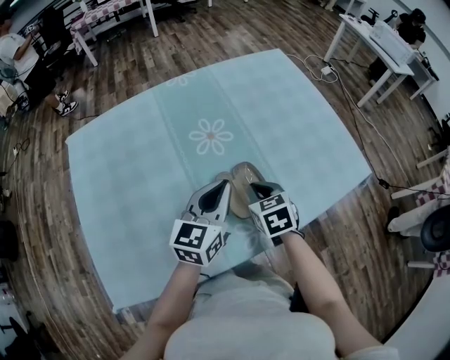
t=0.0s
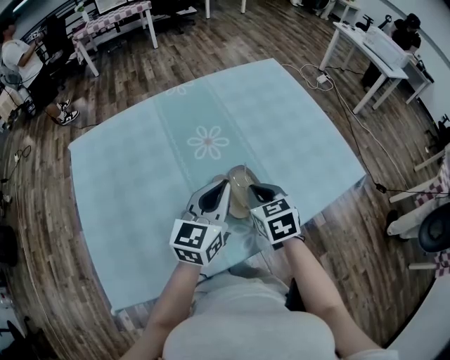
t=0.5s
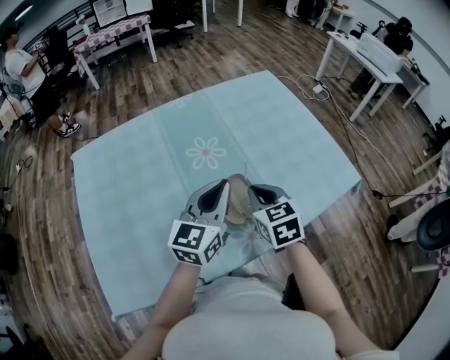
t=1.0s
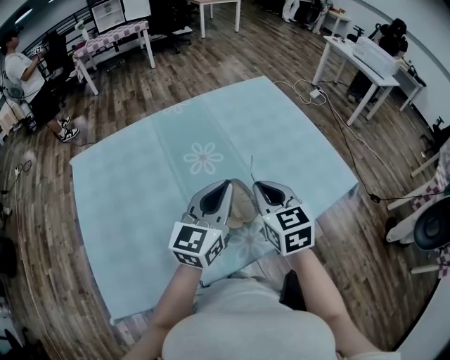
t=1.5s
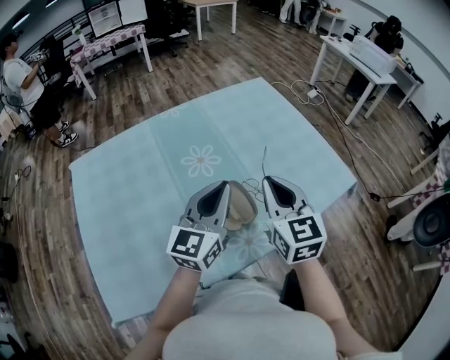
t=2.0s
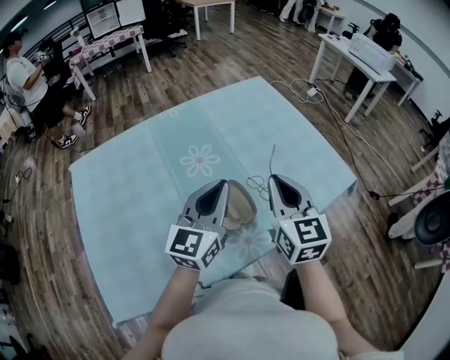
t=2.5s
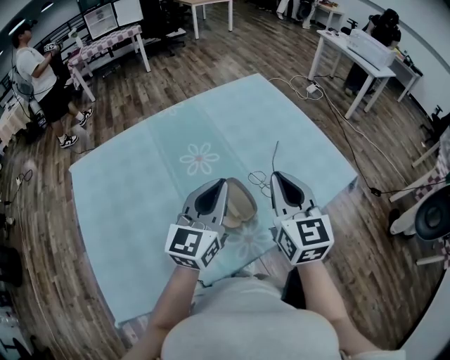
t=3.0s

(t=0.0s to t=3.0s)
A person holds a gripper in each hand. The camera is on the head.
t=0.0s - t=1.5s: The right gripper goes about 15 cm upward, and turns by approximately 20 degrees. Meanwhile the left gripper heads upward, covering approximately 10 cm.
t=1.5s - t=3.0s: The right gripper moves upward, roughly 5 cm, and turns by roughly 20 degrees.

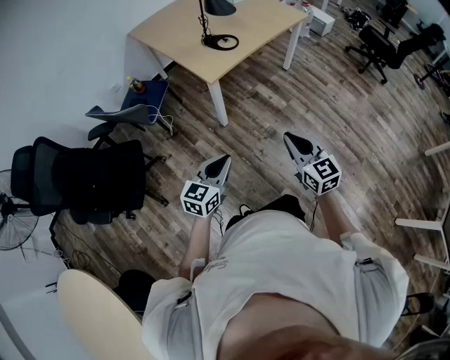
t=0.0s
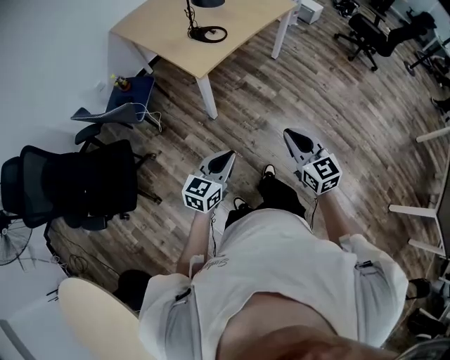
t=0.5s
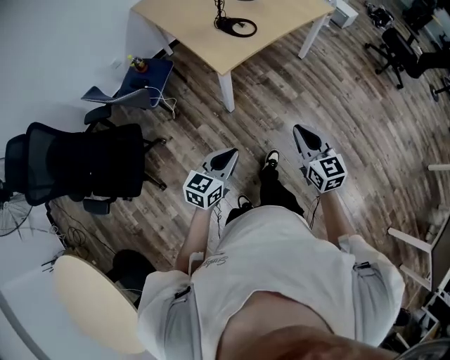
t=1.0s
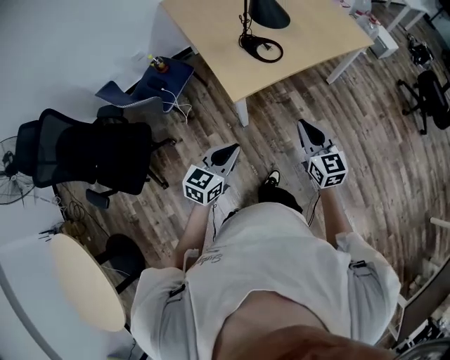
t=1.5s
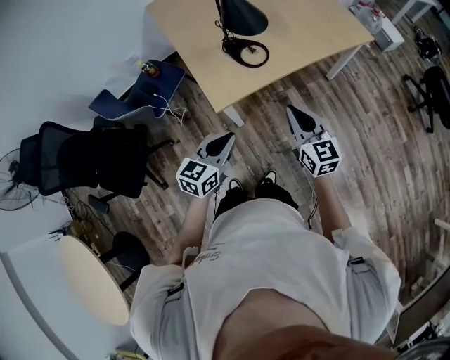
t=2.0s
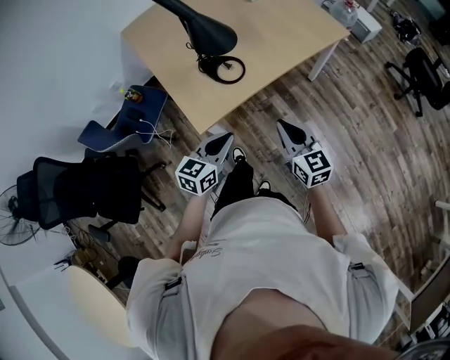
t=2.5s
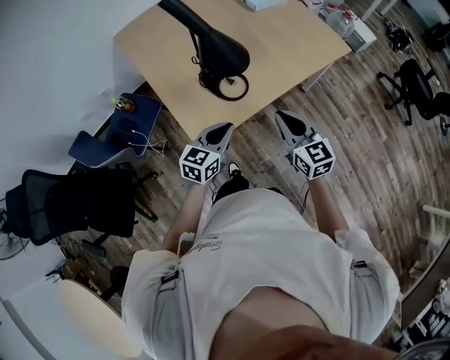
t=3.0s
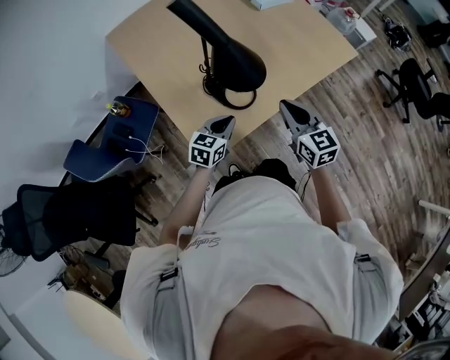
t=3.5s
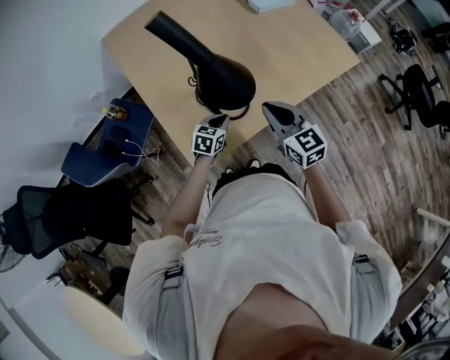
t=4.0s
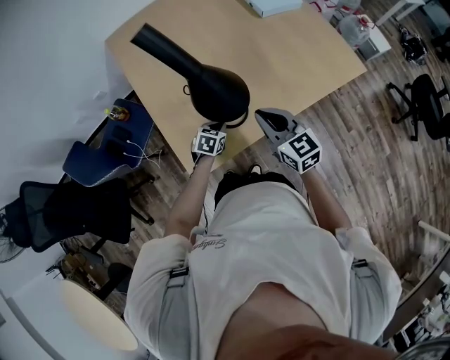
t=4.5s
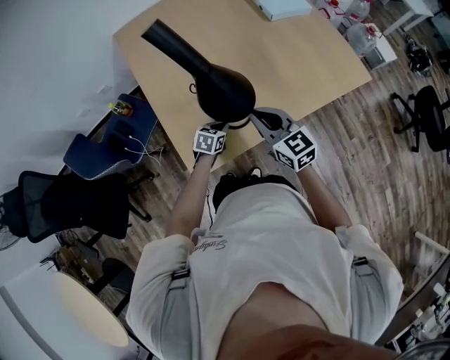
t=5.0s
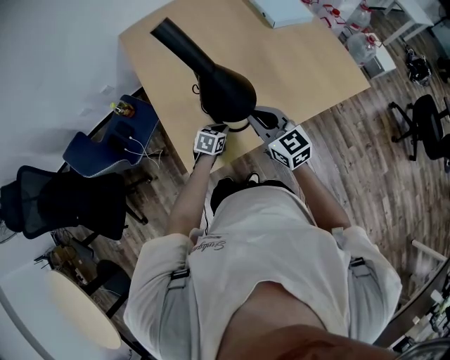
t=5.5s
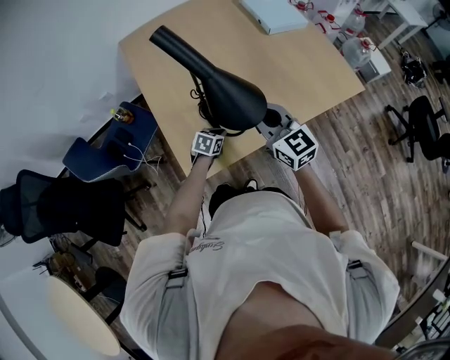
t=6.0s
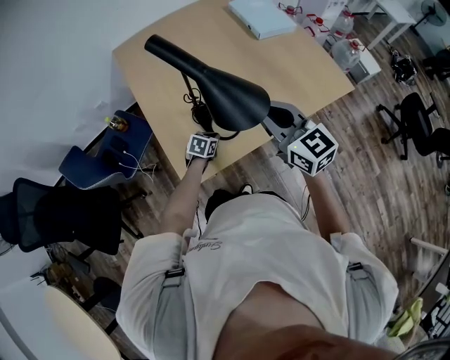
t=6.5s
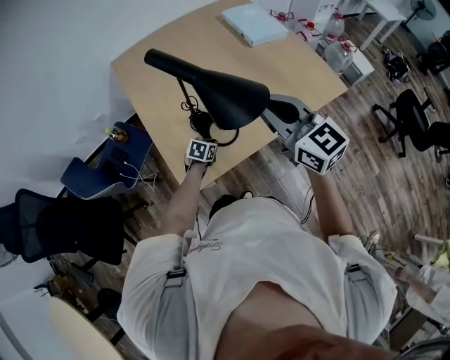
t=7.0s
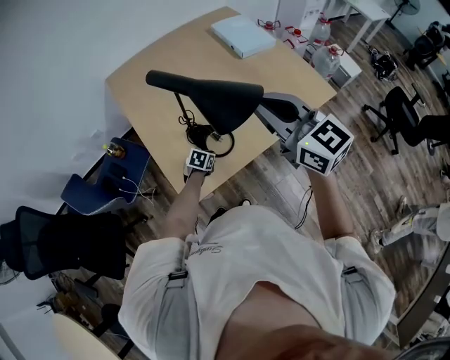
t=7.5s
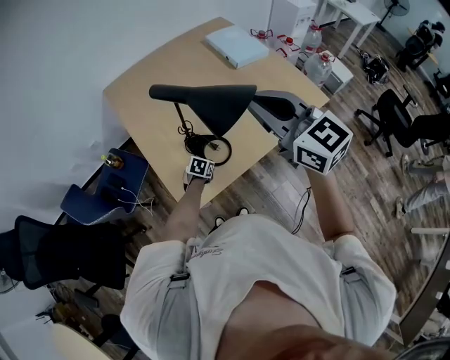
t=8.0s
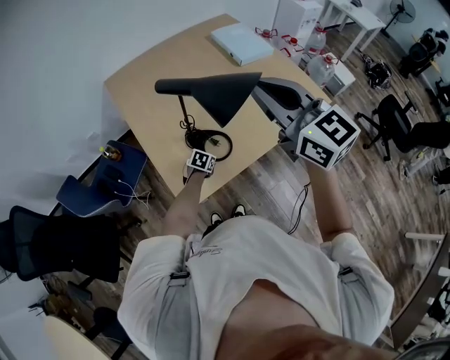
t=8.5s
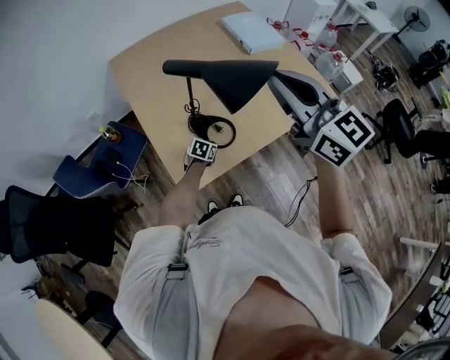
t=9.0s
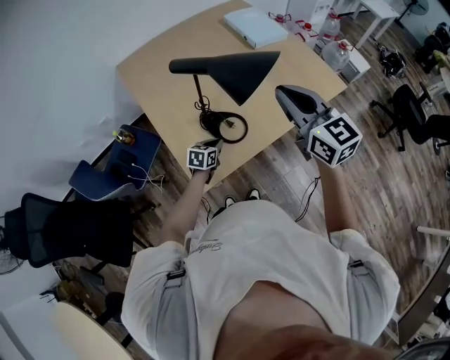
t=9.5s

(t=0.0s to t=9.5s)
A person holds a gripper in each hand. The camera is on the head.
t=0.0s - t=2.0s: The grippers both shift forward by about 40 cm.
t=2.0s - t=4.0s: The left gripper goes some 40 cm forward and downward, and swivels approximately 20 degrees. Meanwhile the right gripper goes approximately 25 cm forward.
t=4.0s - t=5.5s: The left gripper moves downward, about 5 cm; the right gripper ends up roughly 5 cm from where it was.
t=5.5s - t=7.5s: The right gripper is displaced upward by approximately 25 cm.
t=7.5s - t=9.5s: The left gripper moves upward, roughly 10 cm, while the right gripper reaches approximately 5 cm upward, then returns.

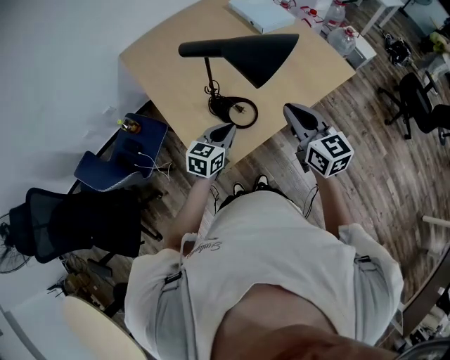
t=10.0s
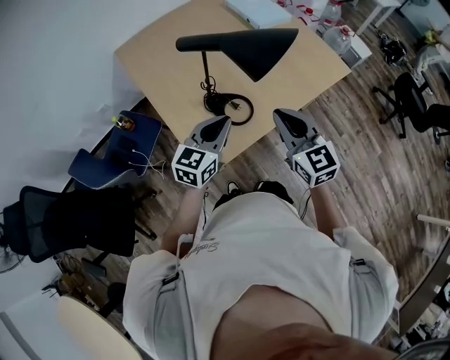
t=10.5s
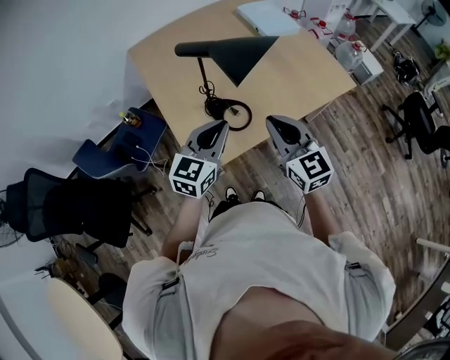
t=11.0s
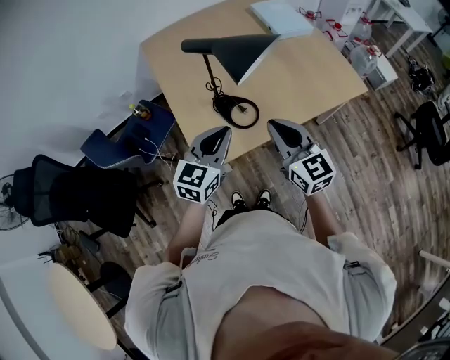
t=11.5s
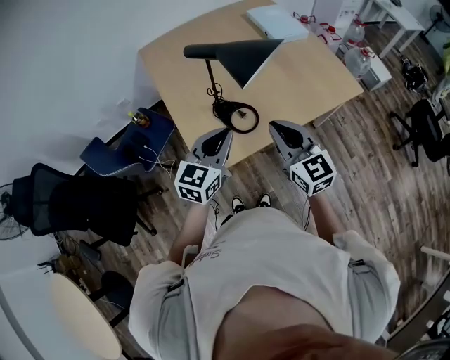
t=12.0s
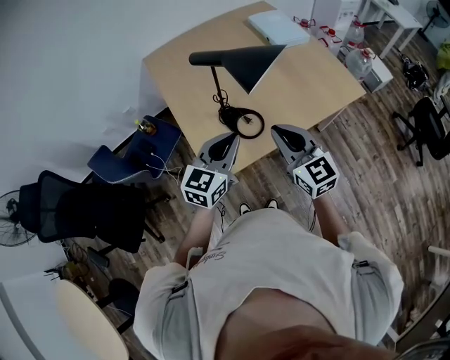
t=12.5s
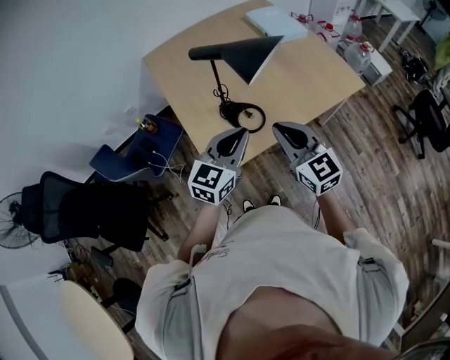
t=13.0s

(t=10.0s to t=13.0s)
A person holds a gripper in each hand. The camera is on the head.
t=10.0s - t=11.5s: The left gripper is displaced upward and backward by some 15 cm.
t=11.5s - t=13.0s: The grippers stay close to where they were, moving slightly.

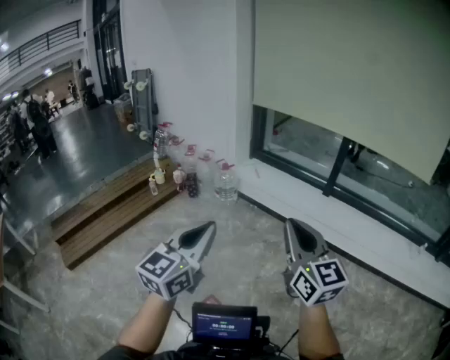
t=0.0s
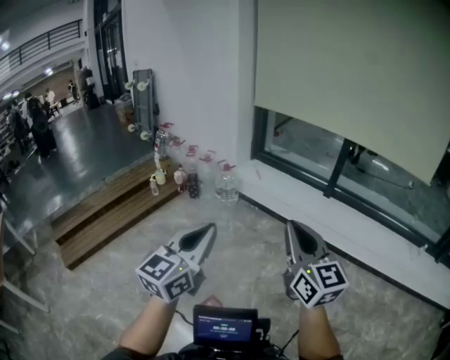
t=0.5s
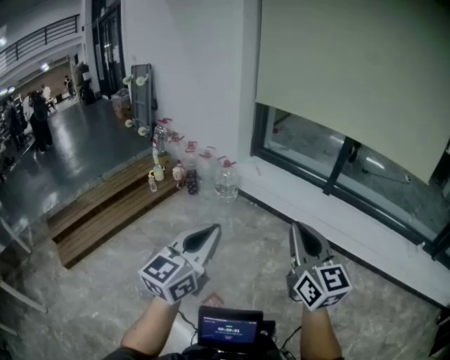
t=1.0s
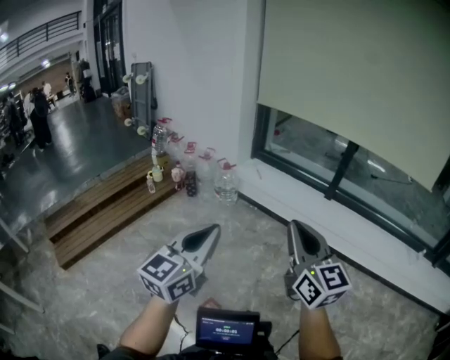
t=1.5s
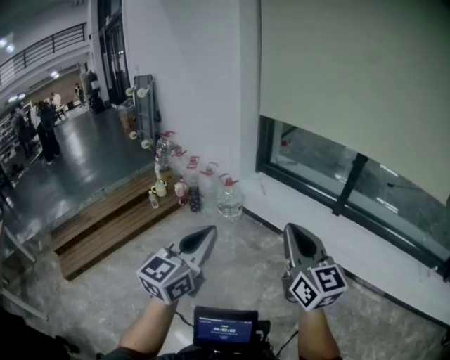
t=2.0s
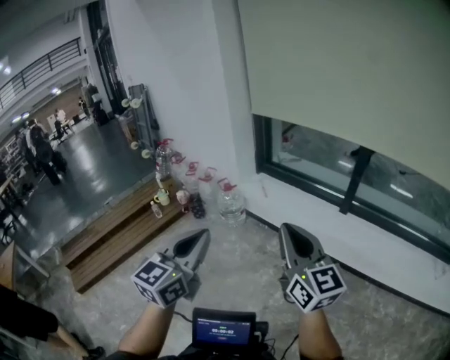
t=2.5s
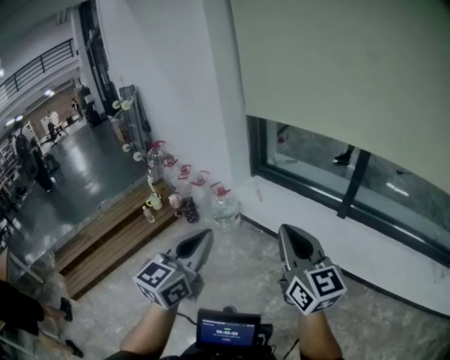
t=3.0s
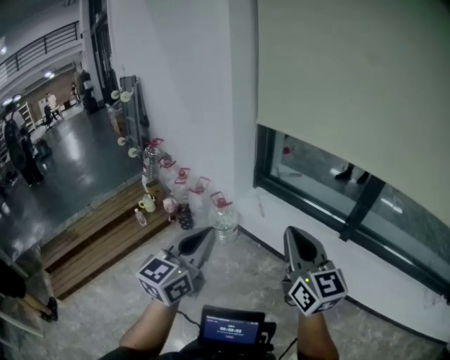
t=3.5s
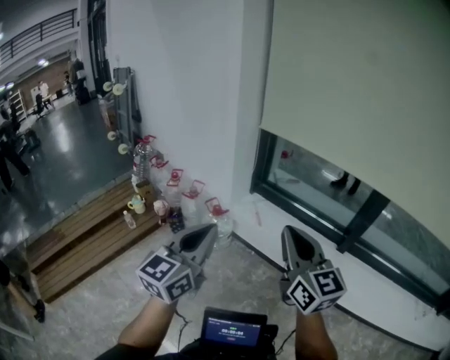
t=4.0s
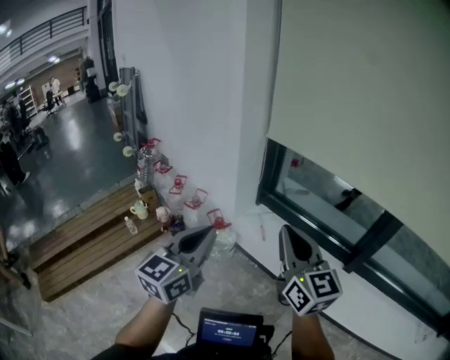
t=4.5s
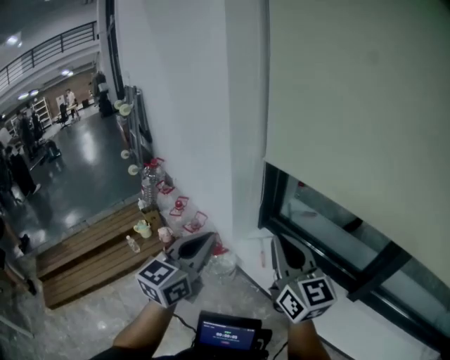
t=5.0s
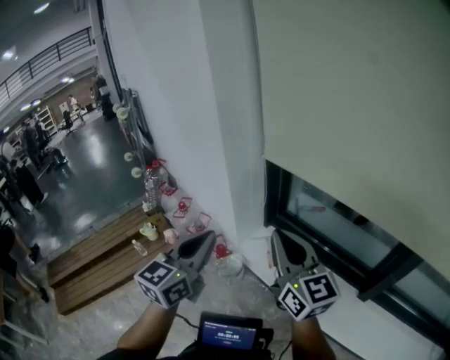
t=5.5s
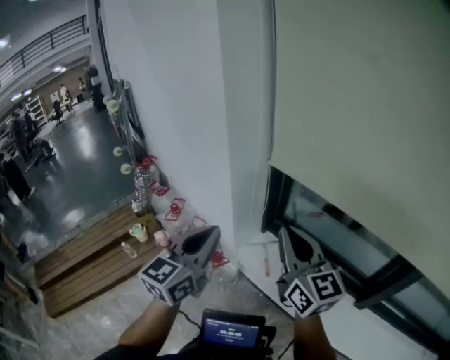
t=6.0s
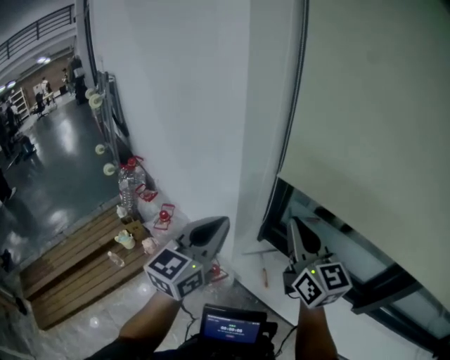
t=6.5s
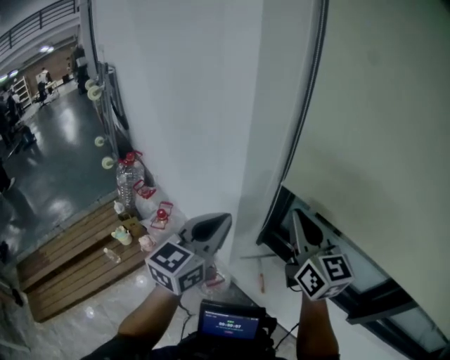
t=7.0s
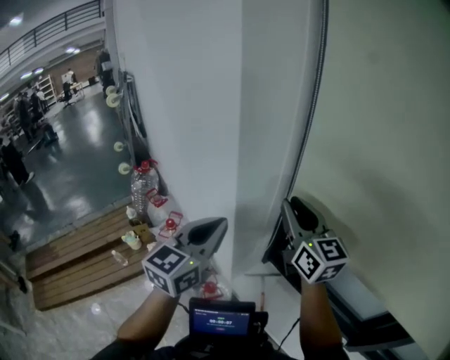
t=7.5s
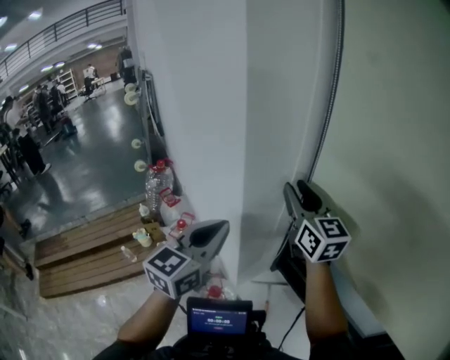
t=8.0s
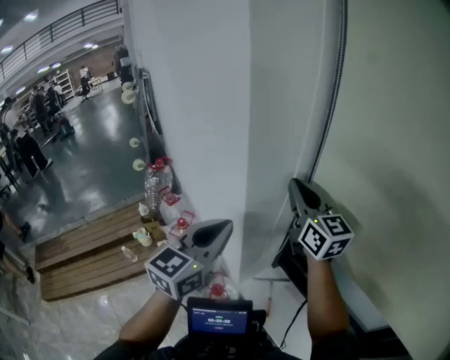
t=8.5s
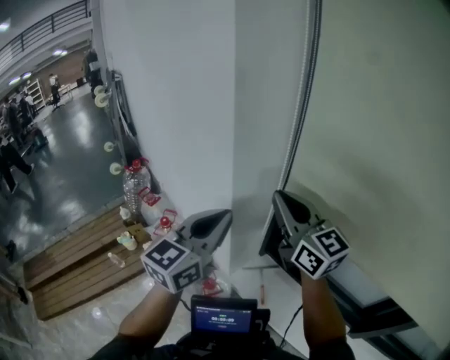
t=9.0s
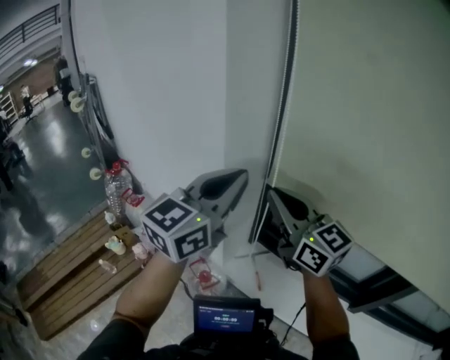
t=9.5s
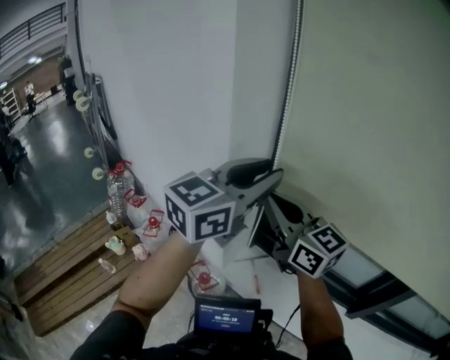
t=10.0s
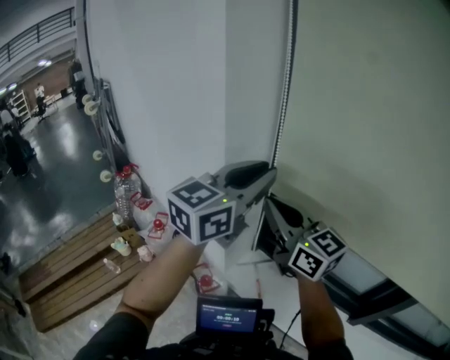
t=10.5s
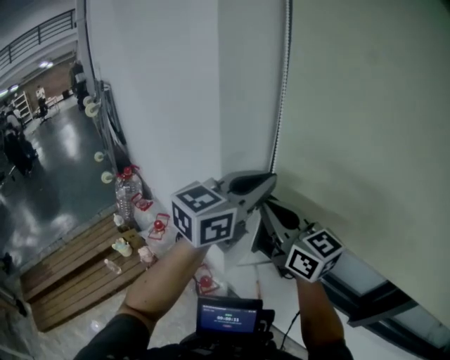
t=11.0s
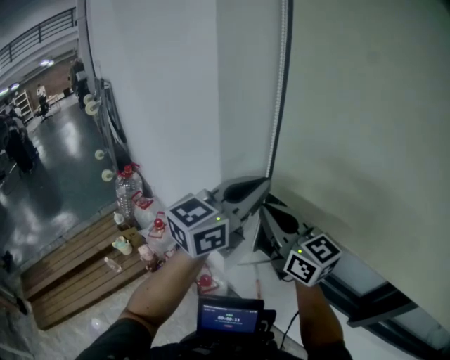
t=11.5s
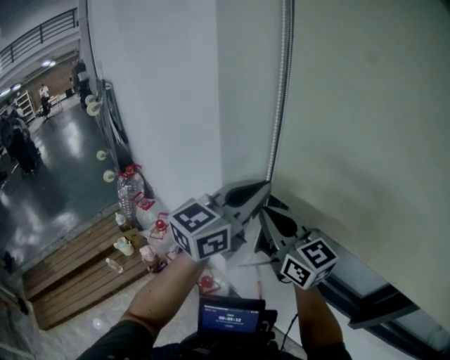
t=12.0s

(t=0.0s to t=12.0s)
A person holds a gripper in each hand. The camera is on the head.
t=0.0s - t=2.0s: Both grippers travel together forward, approximately 15 cm.
t=2.0s - t=4.0s: Both grippers move forward, about 35 cm.
t=4.0s - t=6.0s: The two grippers go approximately 35 cm forward.
t=6.0s - t=8.0s: The right gripper heads forward, covering about 35 cm, and opens its fingers. The left gripper is displaced forward by approximately 20 cm.
t=8.0s - t=10.0s: The left gripper heads upward and to the right, covering roughly 15 cm, rotates about 40 degrees, and opens, while the right gripper moves backward, some 15 cm, and closes.
t=10.0s - t=12.0s: The left gripper closes.
